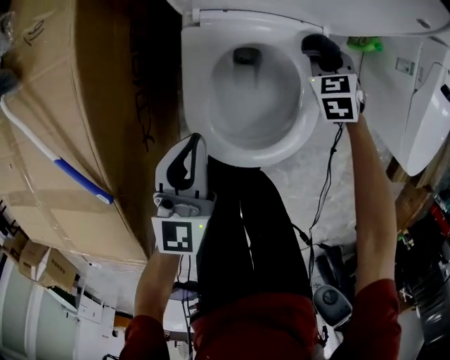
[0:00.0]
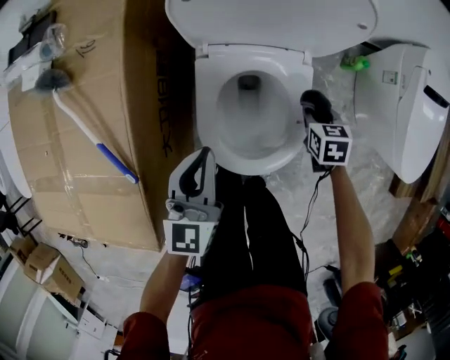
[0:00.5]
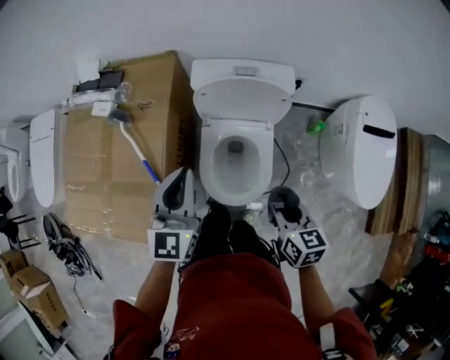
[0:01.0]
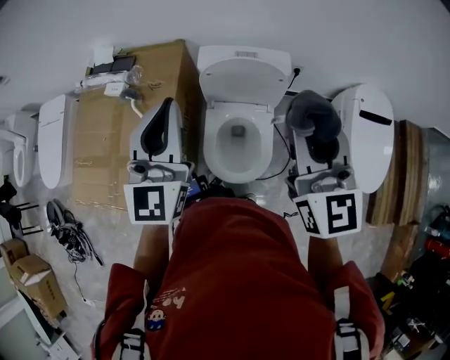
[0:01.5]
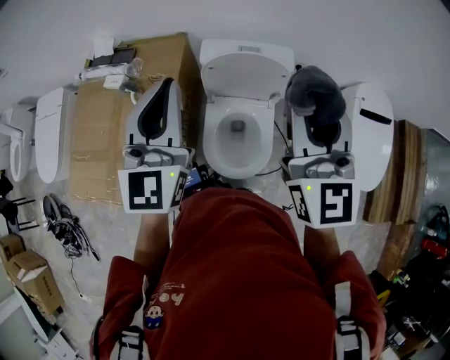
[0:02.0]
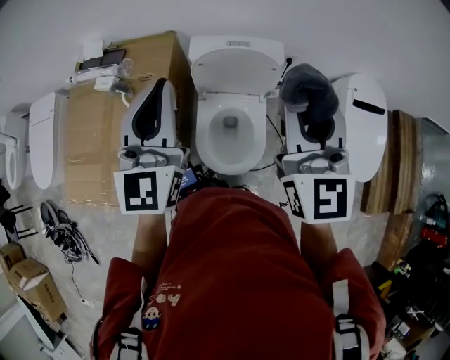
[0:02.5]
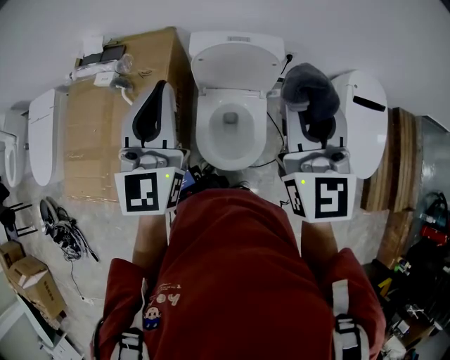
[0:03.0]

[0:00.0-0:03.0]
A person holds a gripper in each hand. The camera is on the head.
0.0 to 1.5 s: Both grippers move upward, approximately 60 cm. The right gripper points its fingers approximately 60 degrees further upward. Meanwhile the left gripper changes its angle by approximately 30 degrees.
1.5 to 3.0 s: The grippers stay close to where they were, moving slightly.

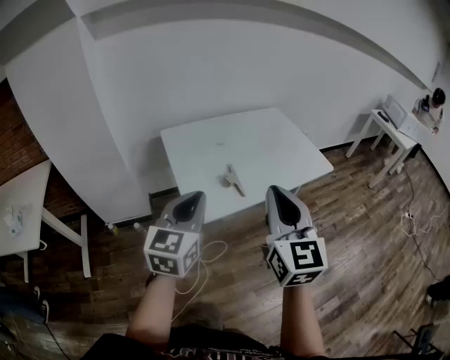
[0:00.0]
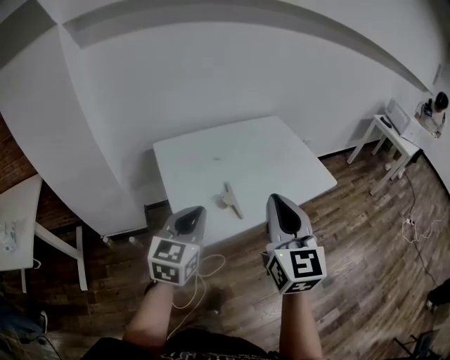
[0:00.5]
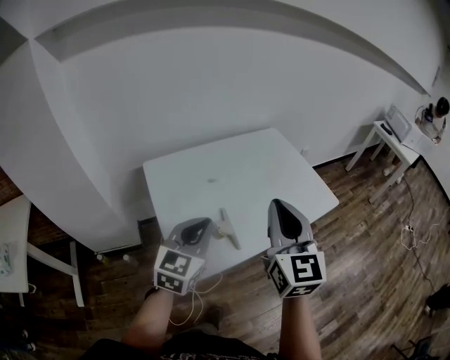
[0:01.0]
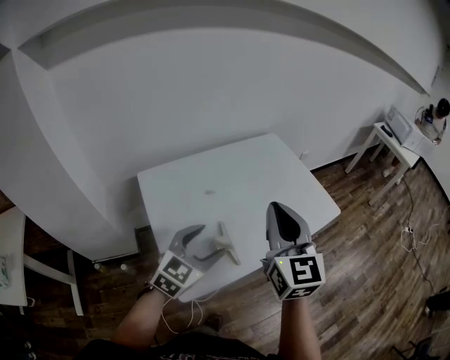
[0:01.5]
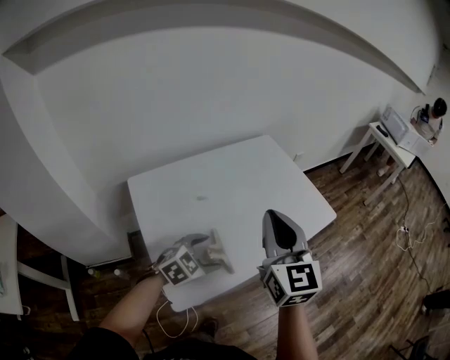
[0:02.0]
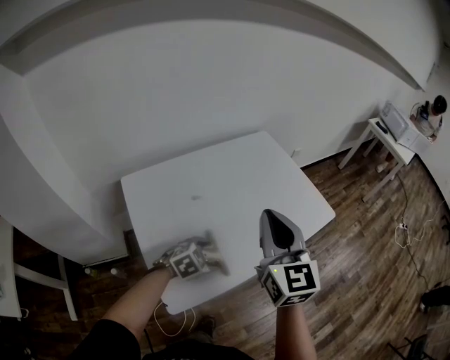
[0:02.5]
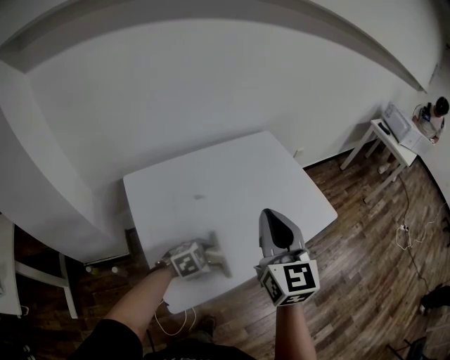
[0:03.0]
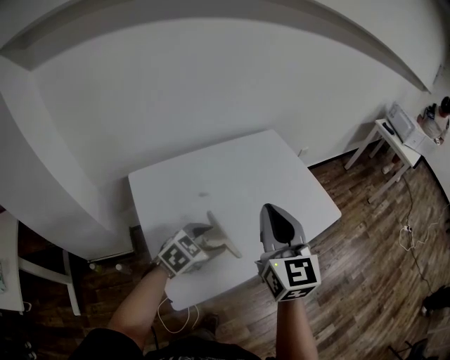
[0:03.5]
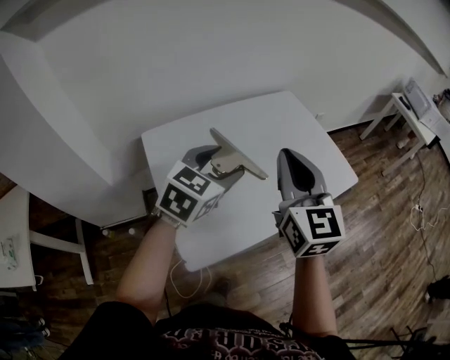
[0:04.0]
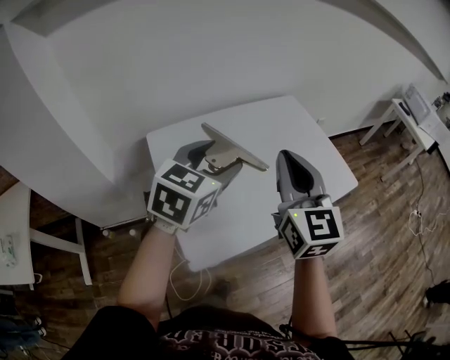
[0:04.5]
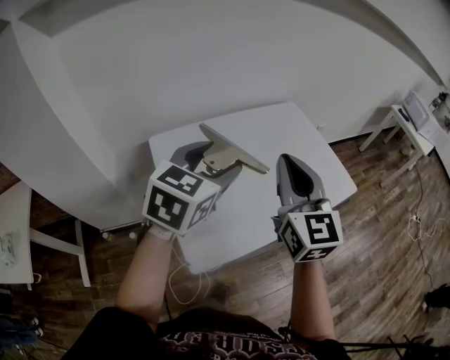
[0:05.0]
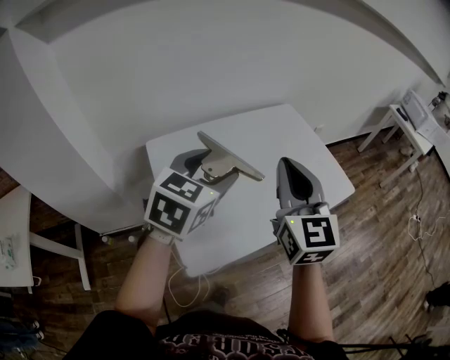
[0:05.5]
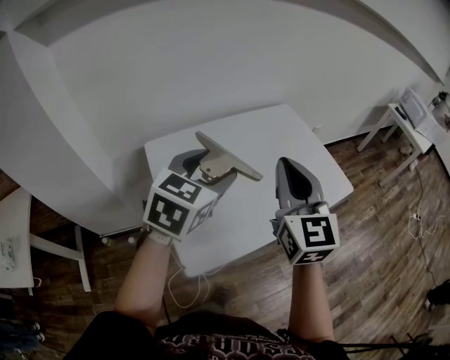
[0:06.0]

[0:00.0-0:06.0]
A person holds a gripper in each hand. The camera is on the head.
0.0 to 2.0 s: The right gripper heads forward, covering roughly 25 cm, while the left gripper moves forward and downward, some 30 cm, angles its fingers downward, by some 30 degrees, and opens.
2.0 to 4.0 s: The left gripper moves upward, some 15 cm, and turns by roughly 30 degrees.
4.0 to 6.0 s: The left gripper heads upward, covering about 5 cm.

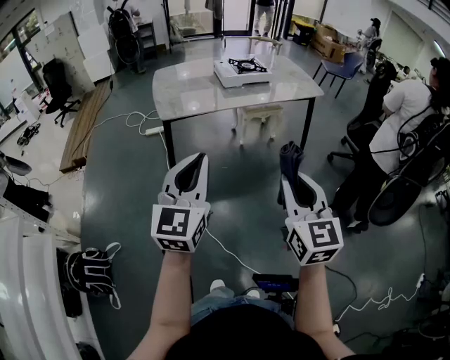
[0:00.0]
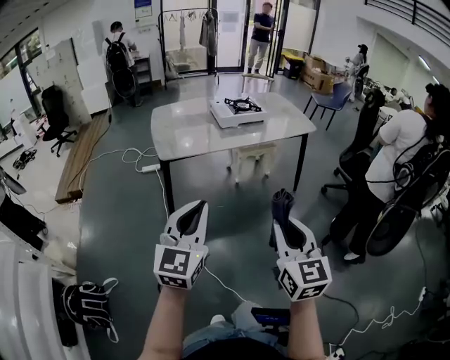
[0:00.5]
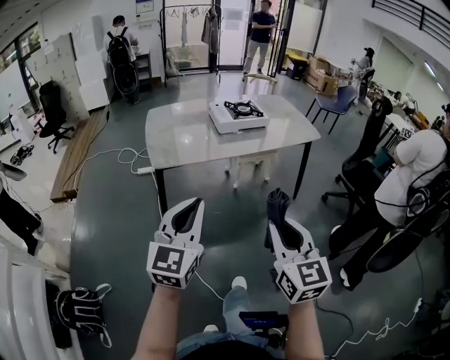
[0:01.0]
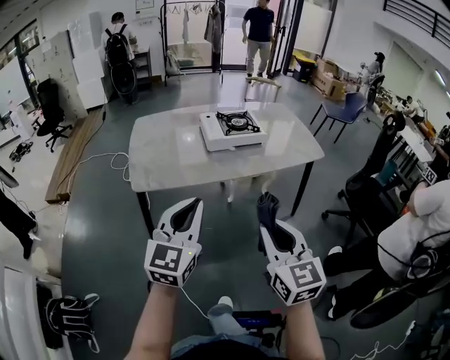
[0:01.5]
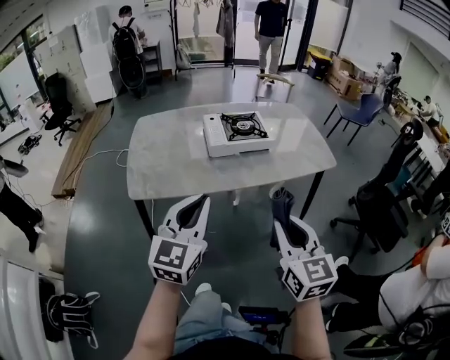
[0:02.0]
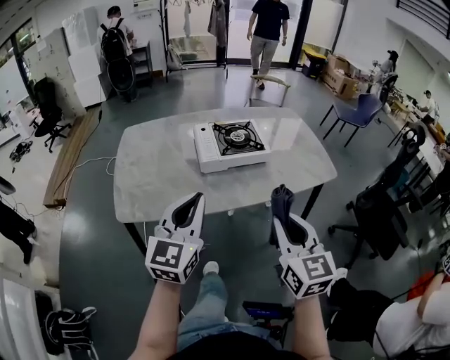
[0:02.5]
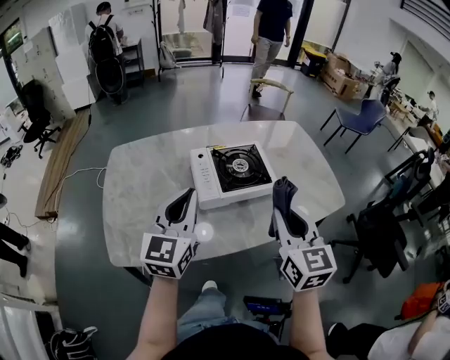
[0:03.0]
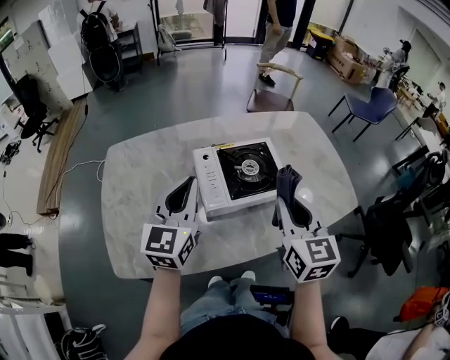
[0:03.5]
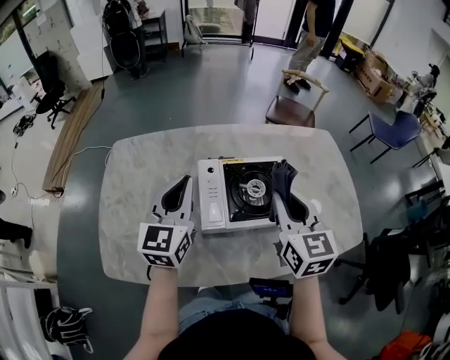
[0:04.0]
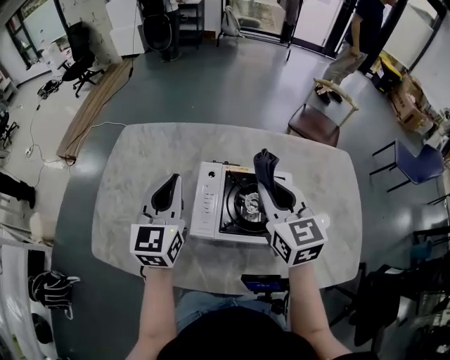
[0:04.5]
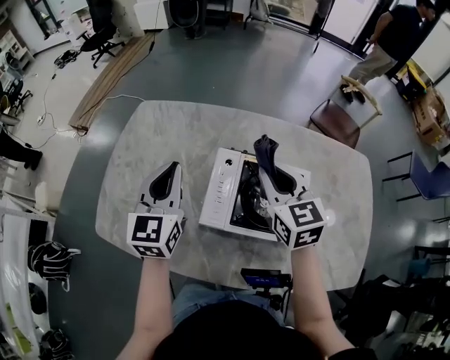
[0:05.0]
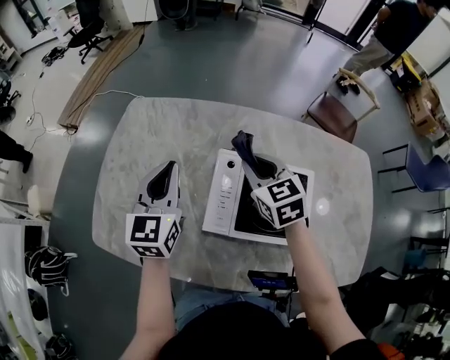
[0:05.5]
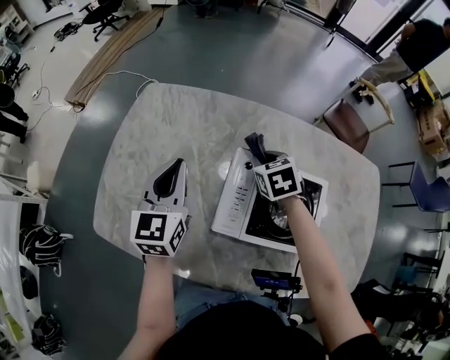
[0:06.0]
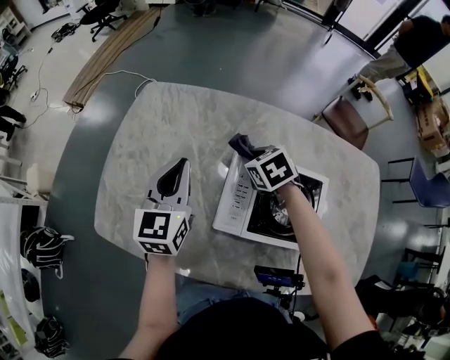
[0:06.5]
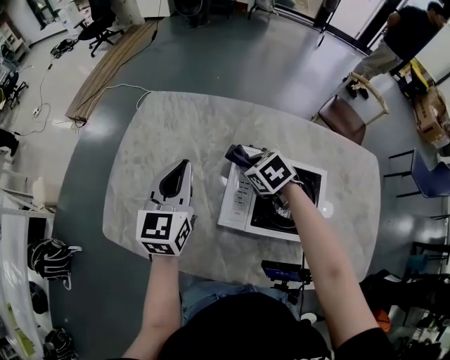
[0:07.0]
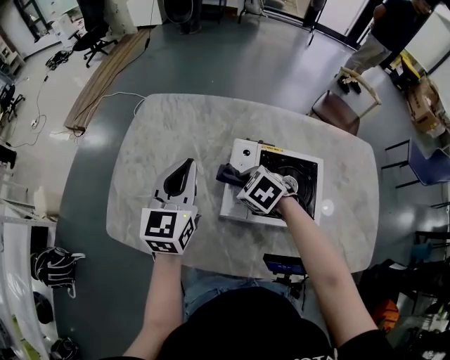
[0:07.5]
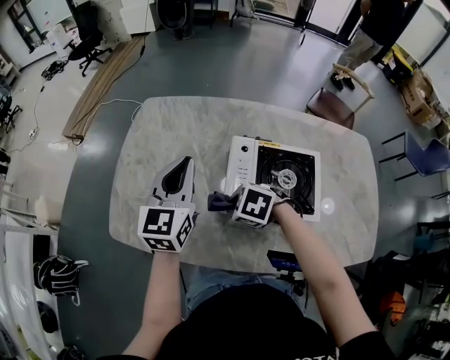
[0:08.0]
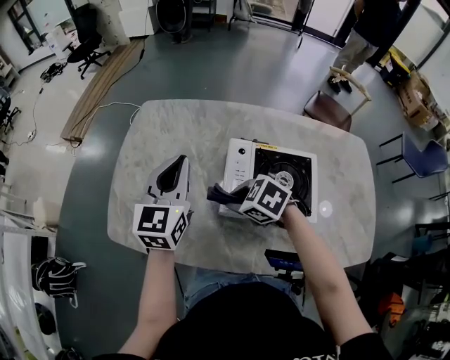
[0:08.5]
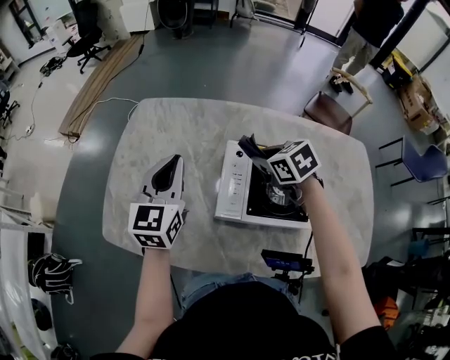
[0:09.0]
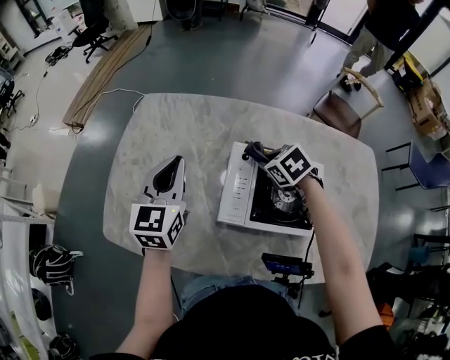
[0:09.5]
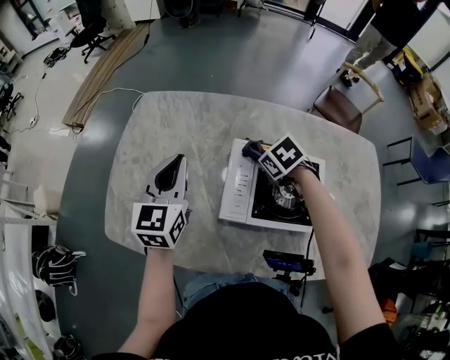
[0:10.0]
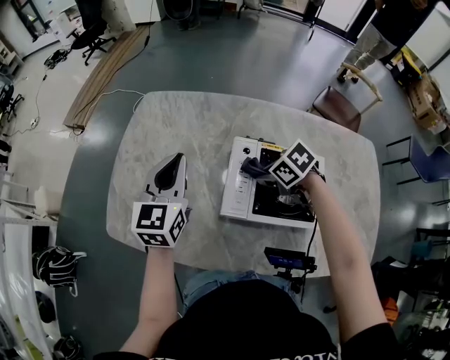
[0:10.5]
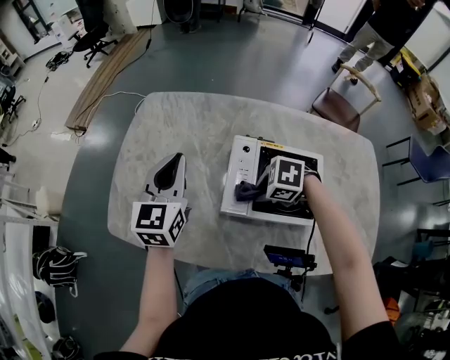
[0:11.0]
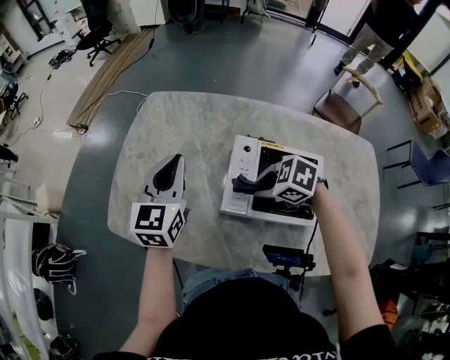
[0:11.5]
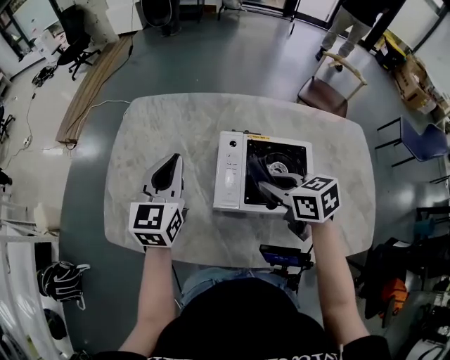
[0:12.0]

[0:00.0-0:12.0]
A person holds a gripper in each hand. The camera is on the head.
0.0 to 2.0 s: Both grippers move forward, some 30 cm.
2.0 to 4.0 s: The pair of grippers is taken forward, some 50 cm.
4.0 to 6.0 s: The right gripper moves about 30 cm, and tips its fingers downward by approximately 40 degrees; the left gripper moves some 15 cm, and rotates about 30 degrees.
6.0 to 8.0 s: The left gripper changes place by some 5 cm; the right gripper shifts by about 25 cm, and changes its angle by about 40 degrees.
8.0 to 10.0 s: The right gripper is displaced to the right and forward by some 20 cm, and changes its angle by about 30 degrees.
10.0 to 12.0 s: The right gripper moves roughly 15 cm, and tilts its fingers about 30 degrees upward.

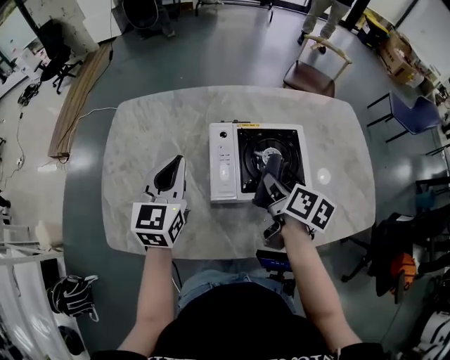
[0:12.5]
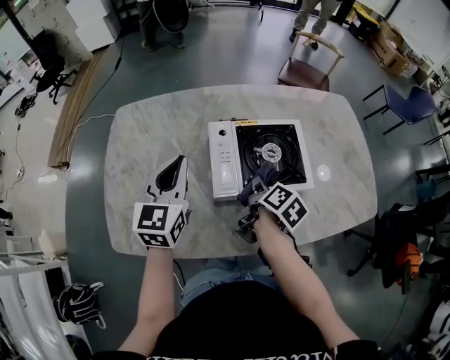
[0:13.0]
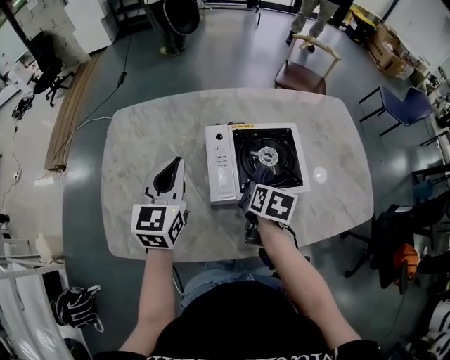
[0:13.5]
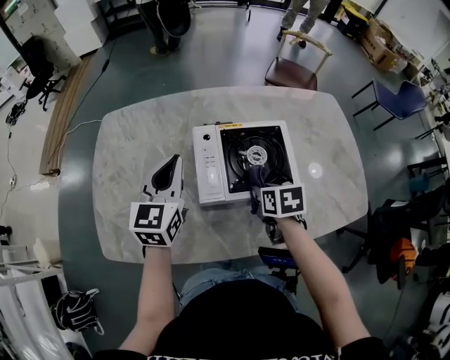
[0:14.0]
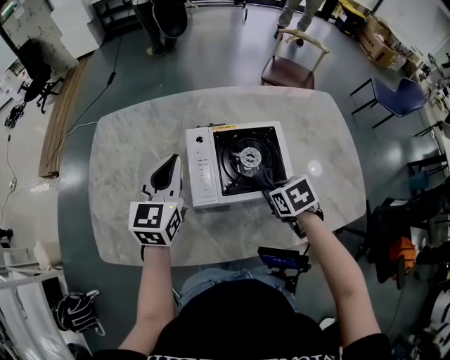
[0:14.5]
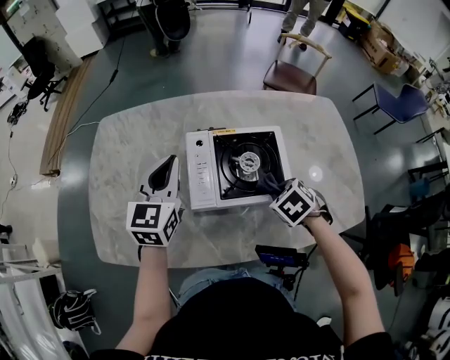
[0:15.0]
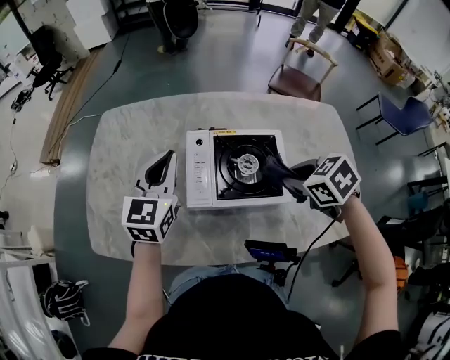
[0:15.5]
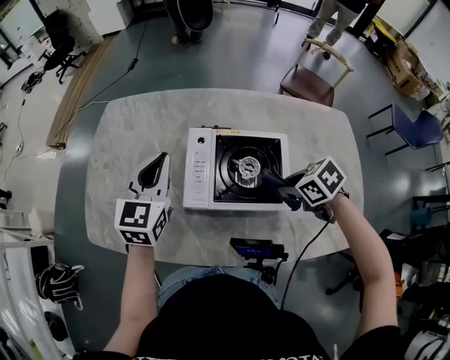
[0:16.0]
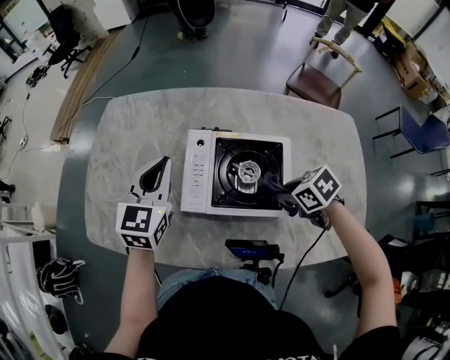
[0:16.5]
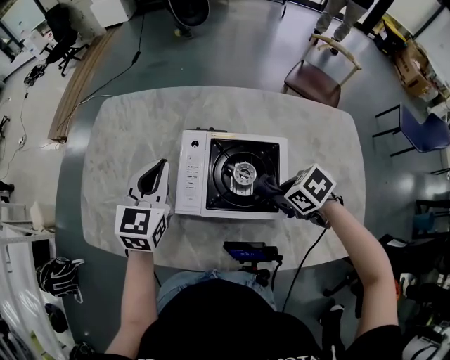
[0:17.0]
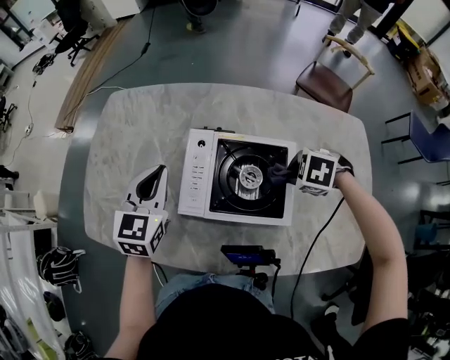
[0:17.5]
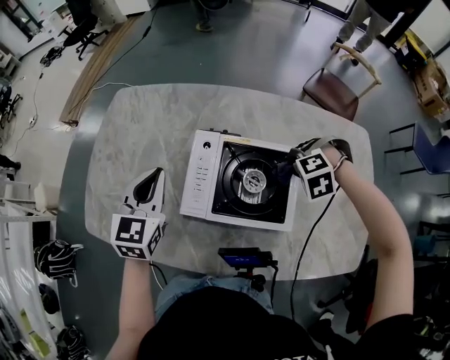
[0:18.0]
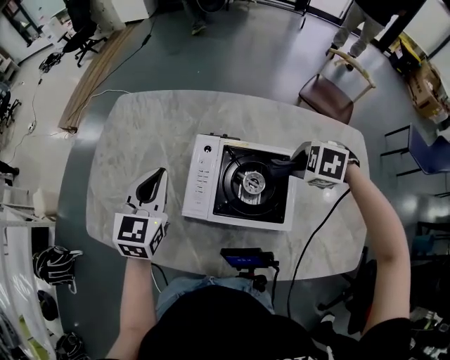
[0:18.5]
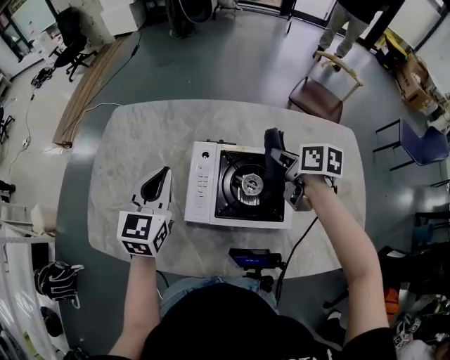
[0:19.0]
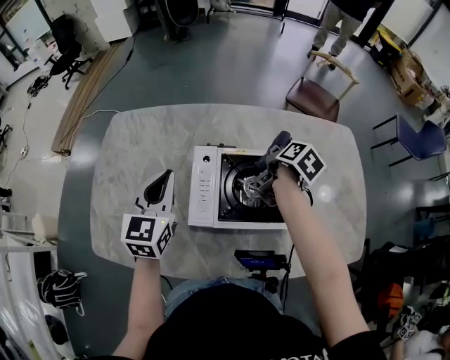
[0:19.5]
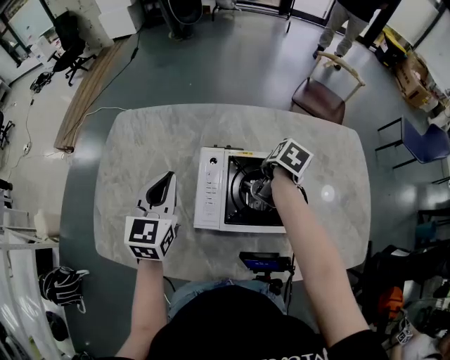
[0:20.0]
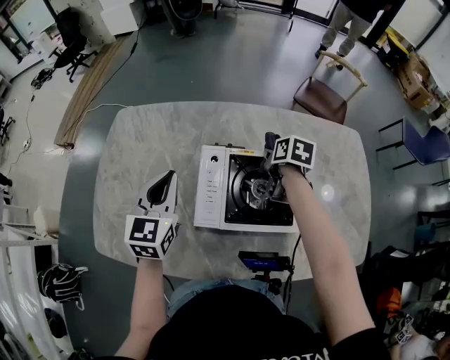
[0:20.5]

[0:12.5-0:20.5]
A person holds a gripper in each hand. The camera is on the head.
12.5 to 14.5 s: The right gripper travels downward and to the right by about 10 cm, and rolls counterclockwise, seen from behind, by approximately 50 degrees. The left gripper goes roughly 5 cm to the right.
14.5 to 16.5 s: The right gripper travels upward and back again, about 10 cm each way, and changes its angle by roughly 30 degrees.
16.5 to 18.5 s: The right gripper changes place by approximately 10 cm, and rolls counterclockwise, seen from behind, by roughly 40 degrees.
18.5 to 20.5 s: The right gripper ends up some 10 cm from where it was, and rotates around the line of its fingers by some 90 degrees, clockwise from behind.
